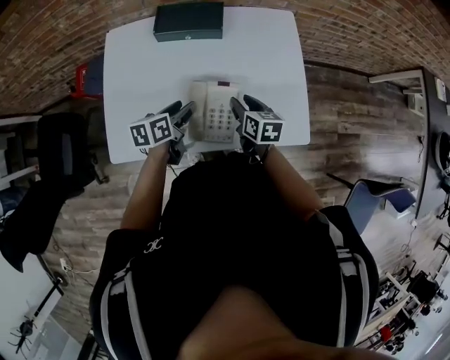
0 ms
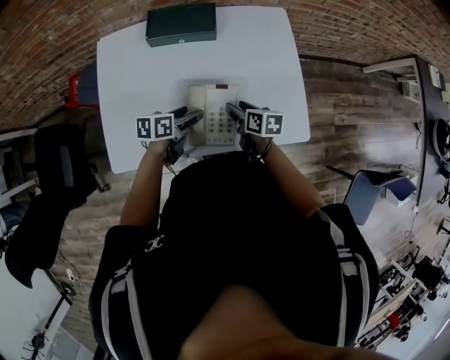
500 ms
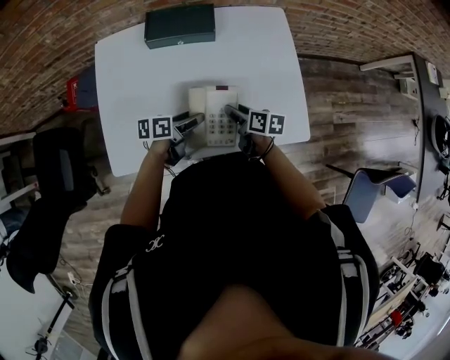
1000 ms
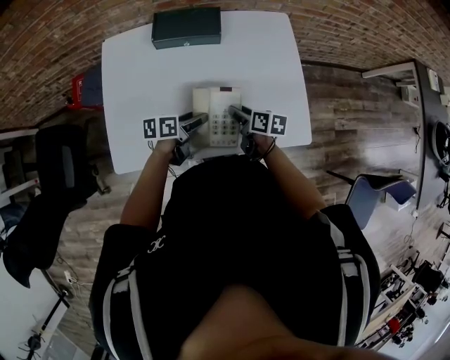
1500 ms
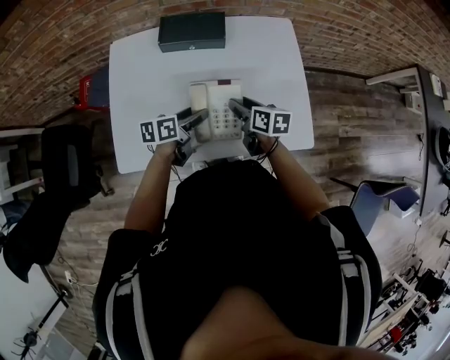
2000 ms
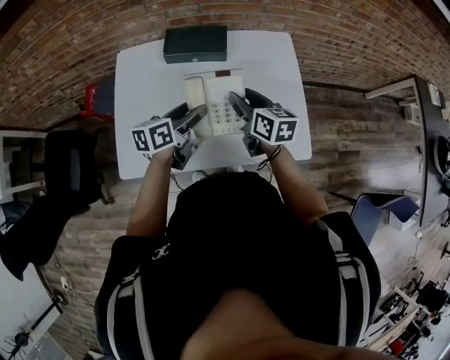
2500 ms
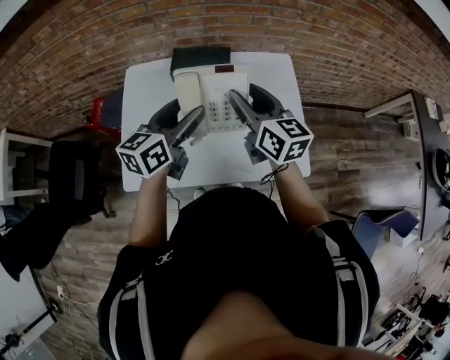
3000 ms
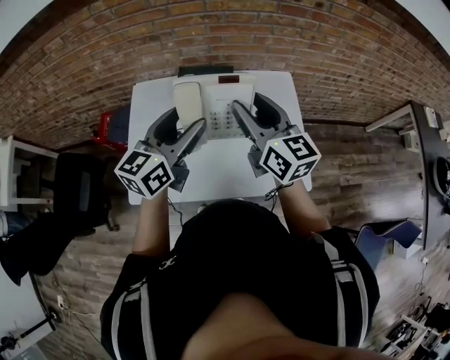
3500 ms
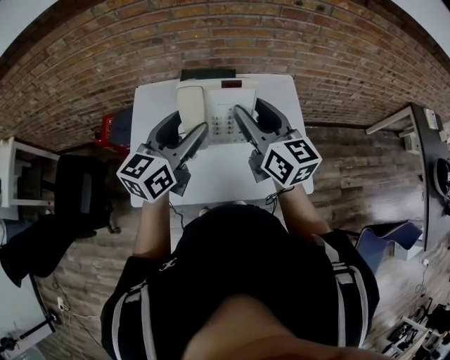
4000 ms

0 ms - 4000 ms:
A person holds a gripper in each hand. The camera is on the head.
2000 ms - 4000 ms: The grippers both shift upward by about 30 cm. The left gripper rotates approximately 50 degrees, while the right gripper tips its fingers upward by about 30 degrees.

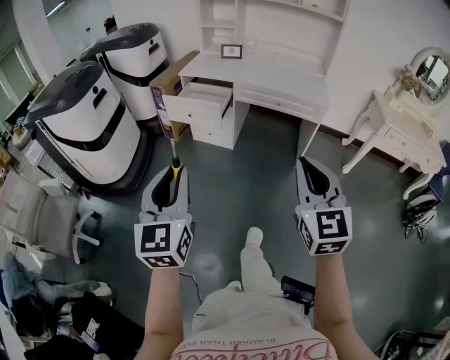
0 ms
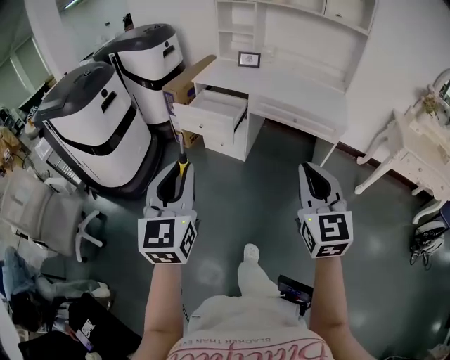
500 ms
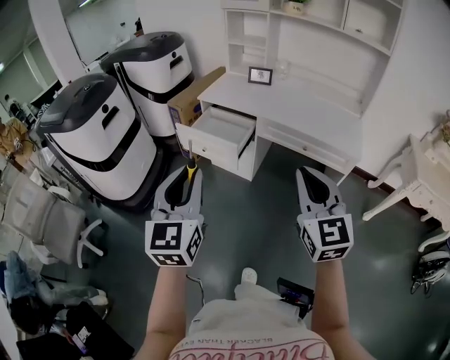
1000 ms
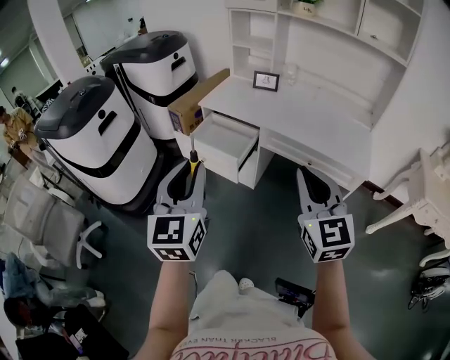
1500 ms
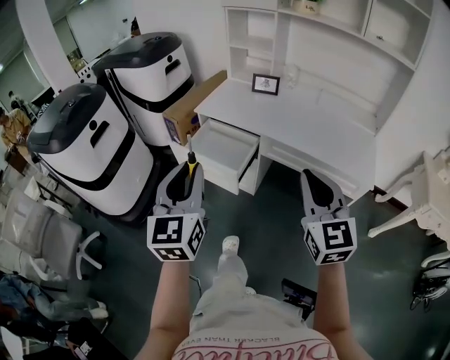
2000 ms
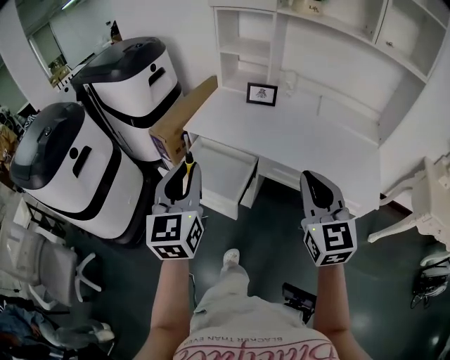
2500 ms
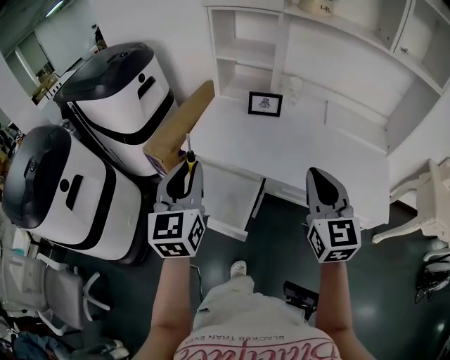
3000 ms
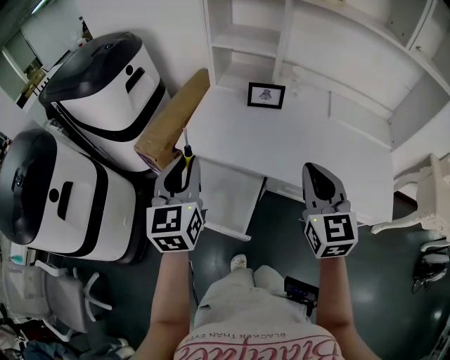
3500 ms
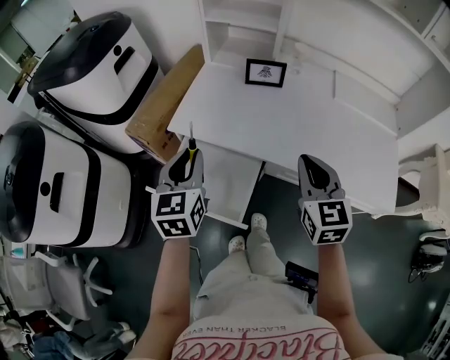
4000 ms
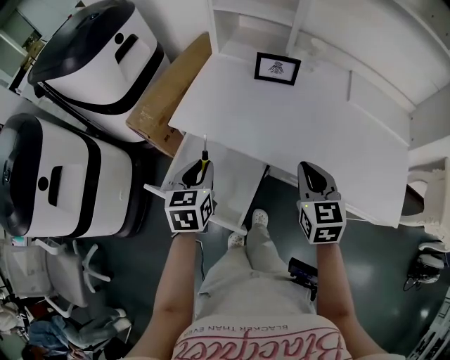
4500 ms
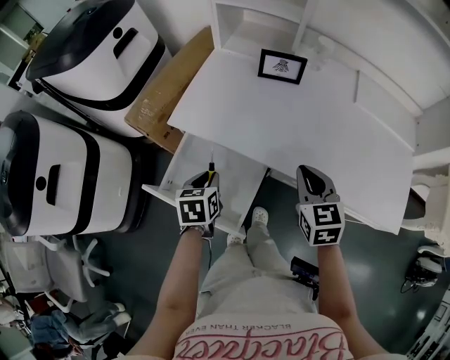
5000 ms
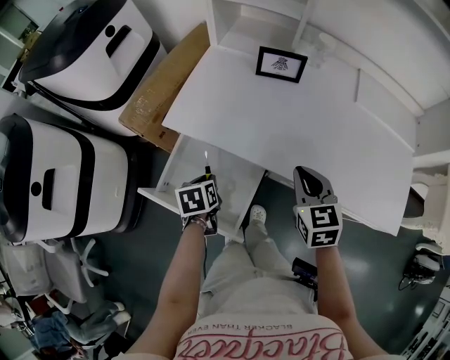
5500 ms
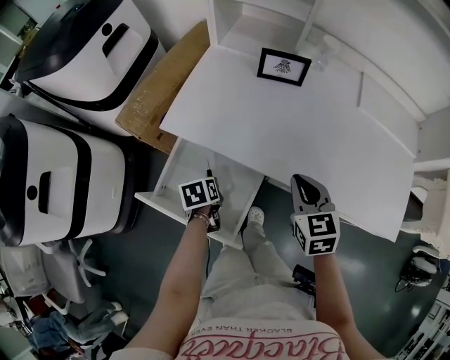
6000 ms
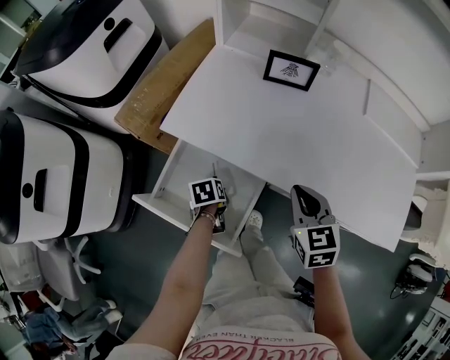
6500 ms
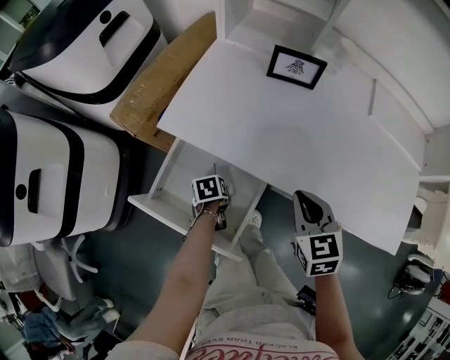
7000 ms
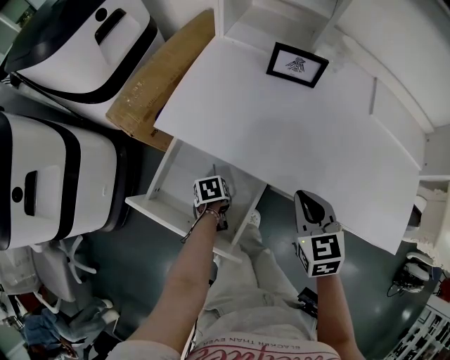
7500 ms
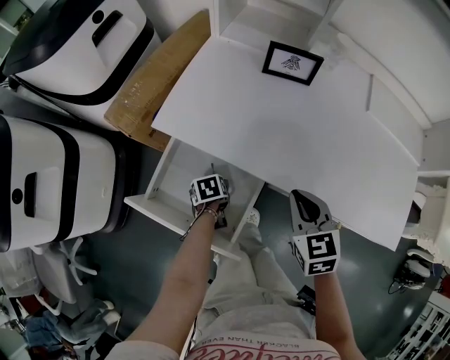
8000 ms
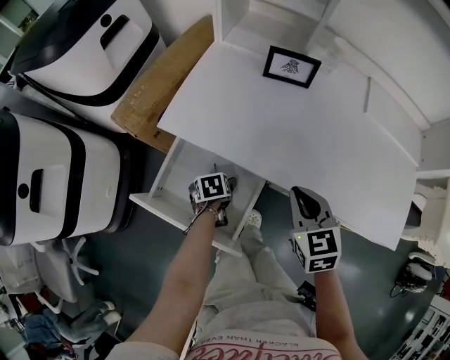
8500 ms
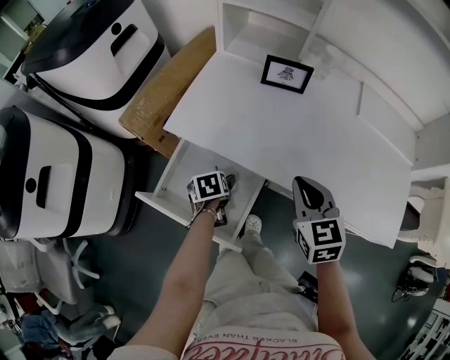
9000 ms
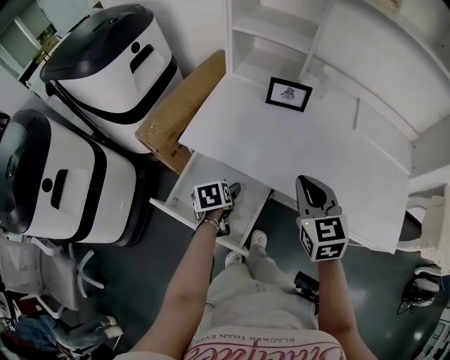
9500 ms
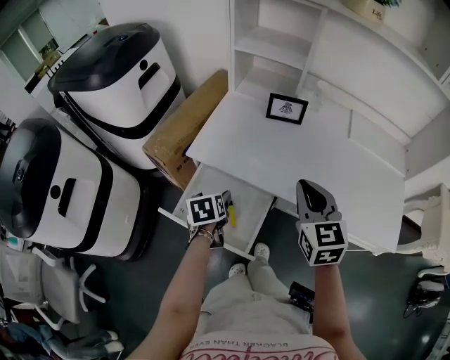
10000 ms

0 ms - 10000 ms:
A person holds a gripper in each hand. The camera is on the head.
0 ms - 2000 ms: The two grippers travel together, forward, approximately 40 cm.
2000 ms - 4000 ms: Both grippers travel together forward, approximately 35 cm. The left gripper turns by approximately 20 degrees.
4000 ms - 6000 ms: The right gripper is displaced downward and forward by some 15 cm. The left gripper is displaced downward by about 30 cm, and angles its fingers downward, by some 40 degrees.
6000 ms - 8000 ms: The left gripper shifts about 10 cm downward, and opens its fingers.
8000 ms - 10000 ms: The grippers both shift upward by about 20 cm. The left gripper turns by approximately 20 degrees, while the right gripper turns by roughly 20 degrees.

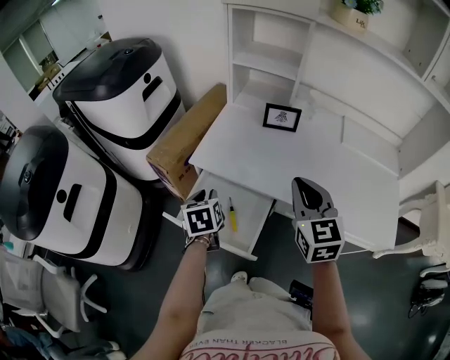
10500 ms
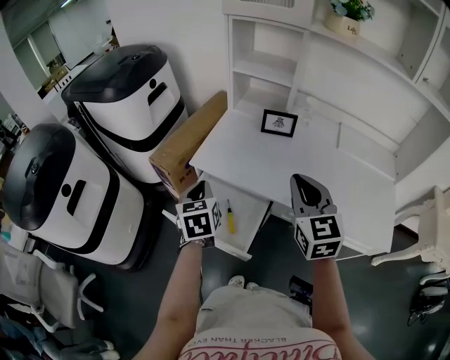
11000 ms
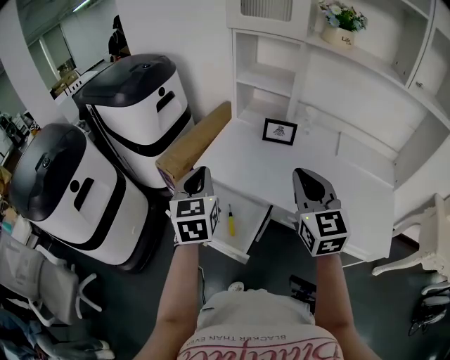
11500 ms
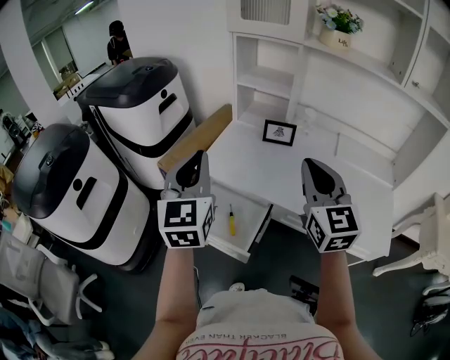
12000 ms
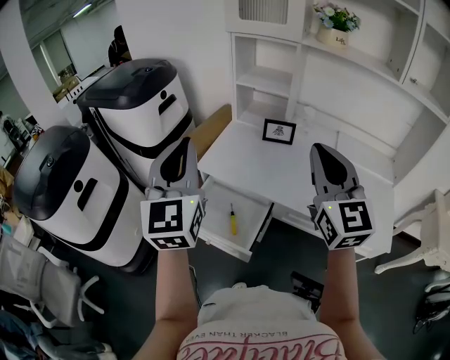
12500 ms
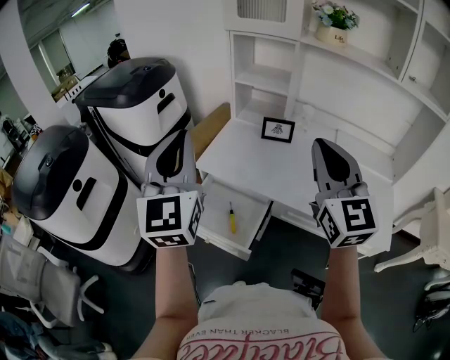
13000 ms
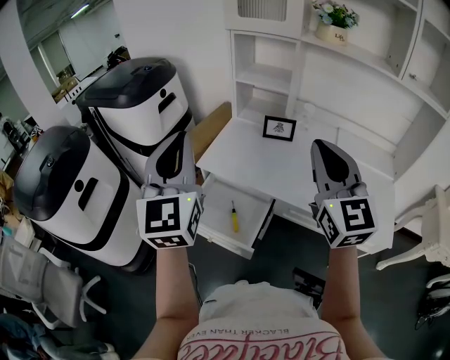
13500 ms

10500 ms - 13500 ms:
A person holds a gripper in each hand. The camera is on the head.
10500 ms - 12000 ms: The right gripper heads upward, covering roughly 10 cm; the left gripper is displaced upward by approximately 30 cm, and tips its fingers upward by approximately 40 degrees.
12000 ms - 13500 ms: Both grippers travel together upward, about 5 cm.

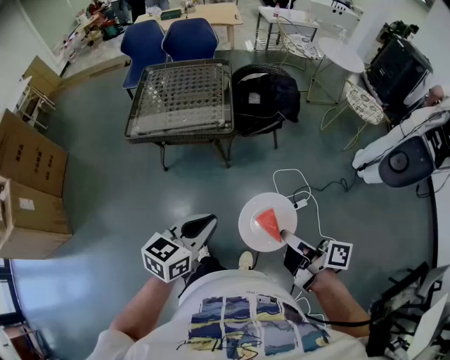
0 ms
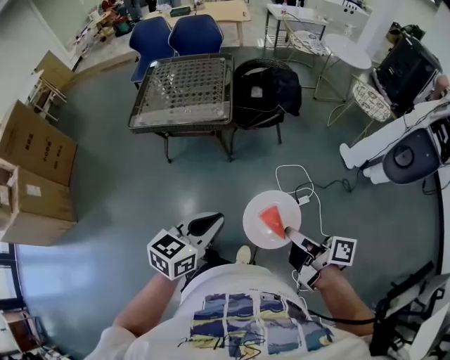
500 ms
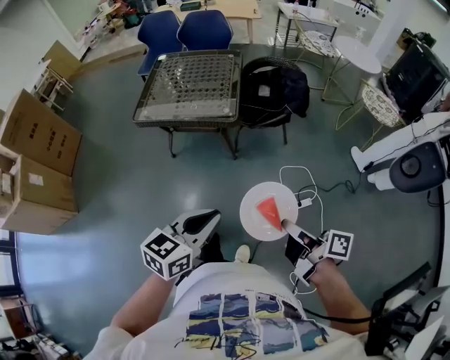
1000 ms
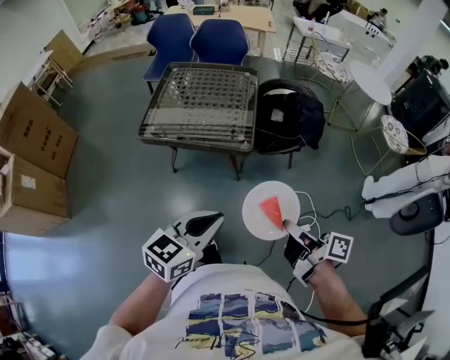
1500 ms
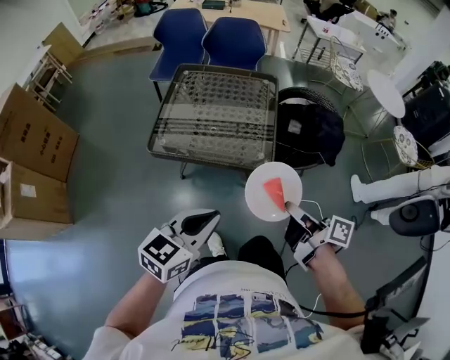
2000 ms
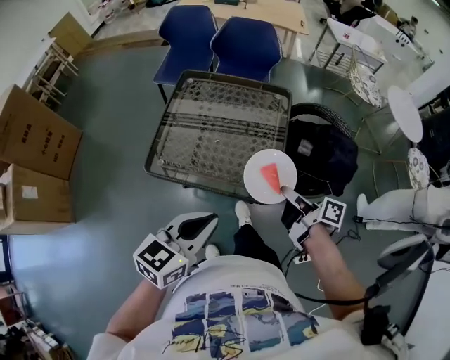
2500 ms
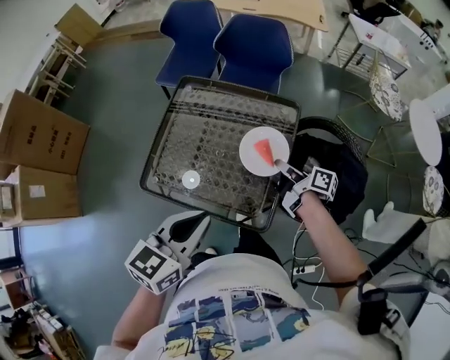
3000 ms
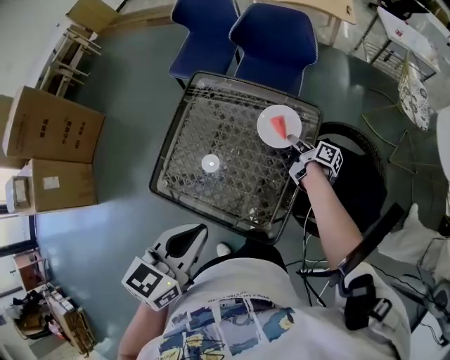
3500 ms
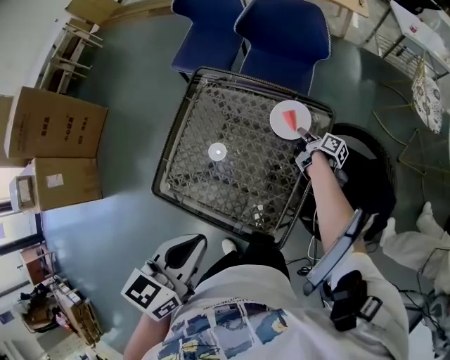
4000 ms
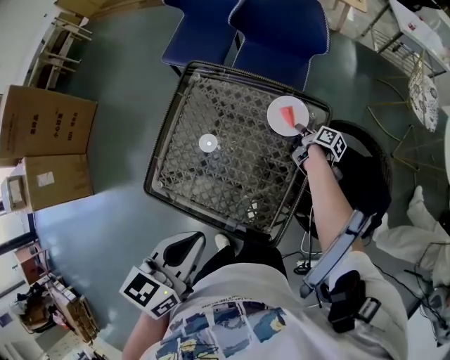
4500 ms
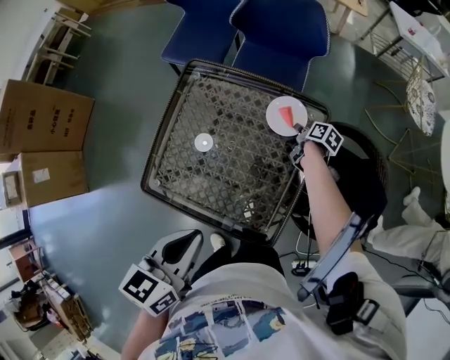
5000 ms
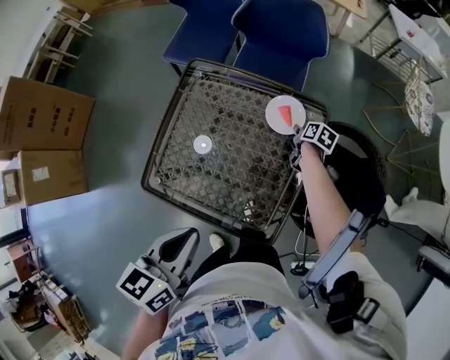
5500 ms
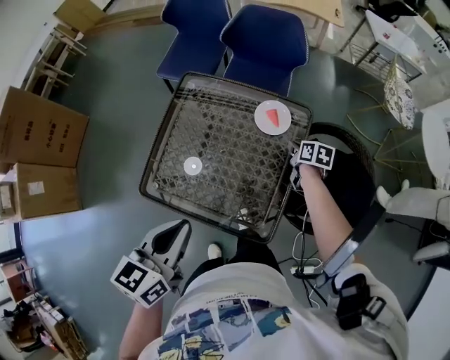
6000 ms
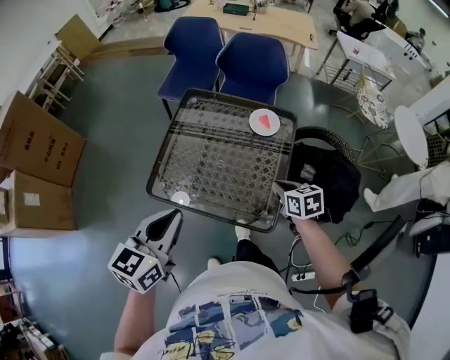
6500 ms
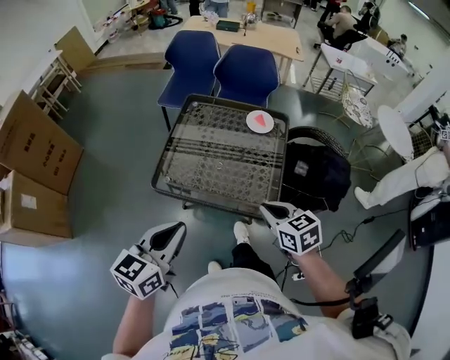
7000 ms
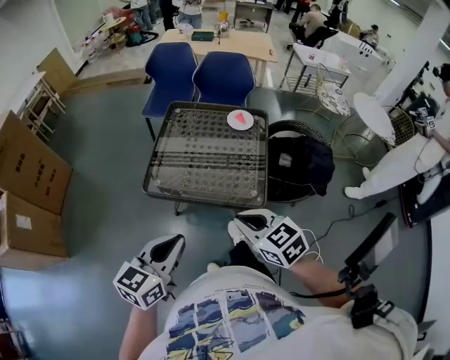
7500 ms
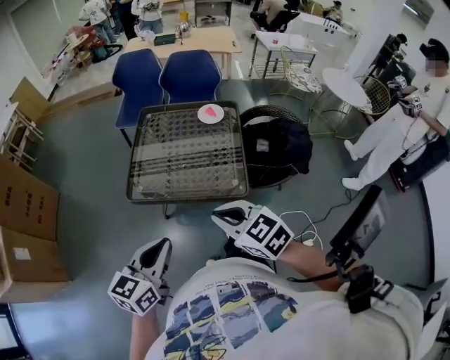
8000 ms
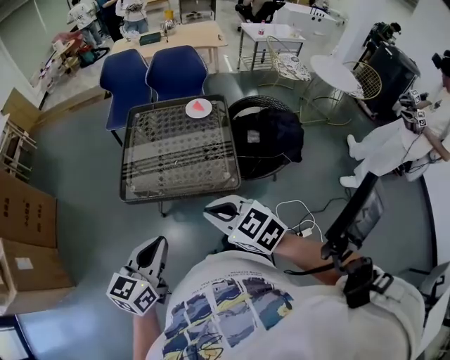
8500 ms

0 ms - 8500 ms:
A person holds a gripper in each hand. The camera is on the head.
0 ms - 2000 ms: The right gripper is displaced forward by roughly 30 cm, while the left gripper heads forward and to the left, covering roughly 25 cm.
2000 ms - 4000 ms: The left gripper goes approximately 35 cm forward, and swivels roughly 30 degrees. Meanwhile the right gripper heads forward and downward, covering approximately 70 cm, and rotates about 20 degrees.
4000 ms - 6500 ms: The left gripper is displaced to the left and backward by roughly 15 cm, while the right gripper shifts some 35 cm backward and upward, twists about 60 degrees counterclockwise, seen from behind, and opens, then closes again.
6500 ms - 8500 ms: The right gripper moves backward, upward and to the left, approximately 35 cm, and turns by about 30 degrees, while the left gripper shifts roughly 20 cm backward.
